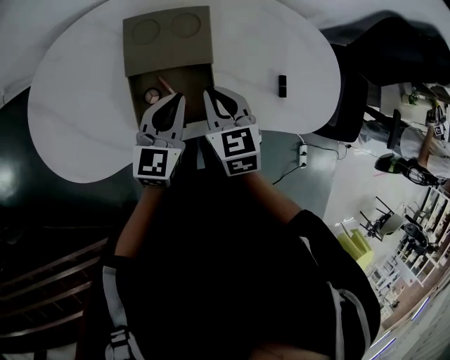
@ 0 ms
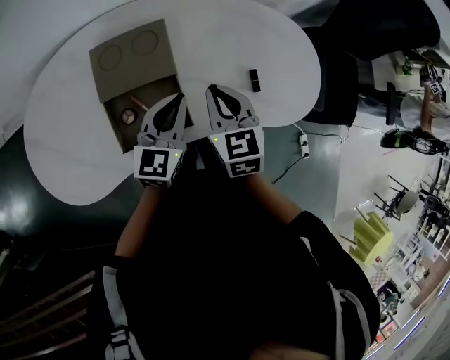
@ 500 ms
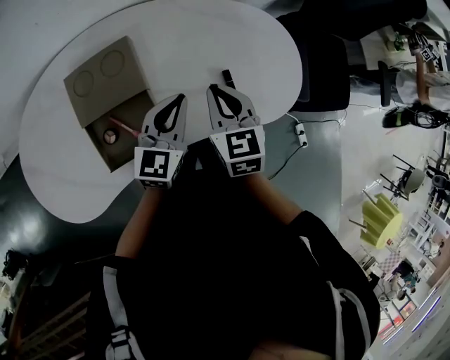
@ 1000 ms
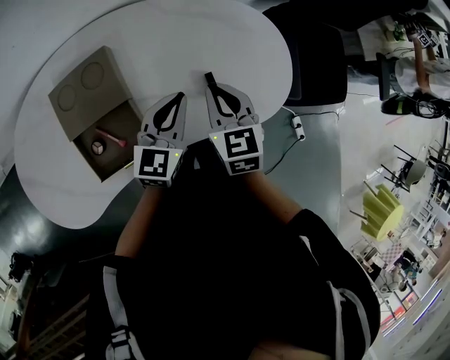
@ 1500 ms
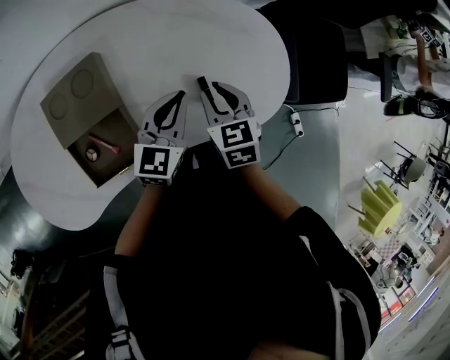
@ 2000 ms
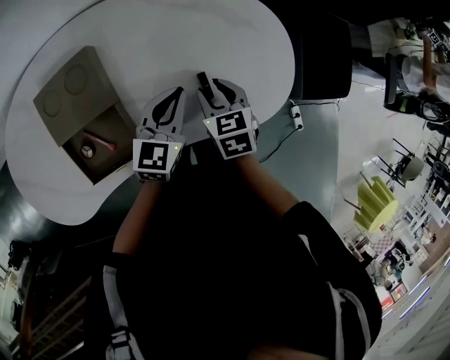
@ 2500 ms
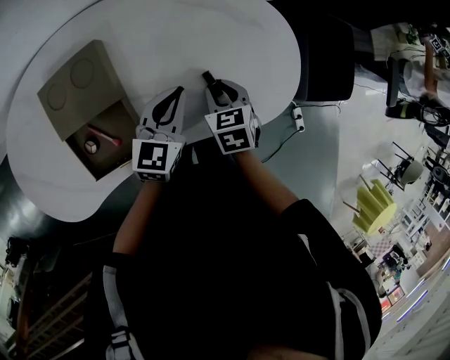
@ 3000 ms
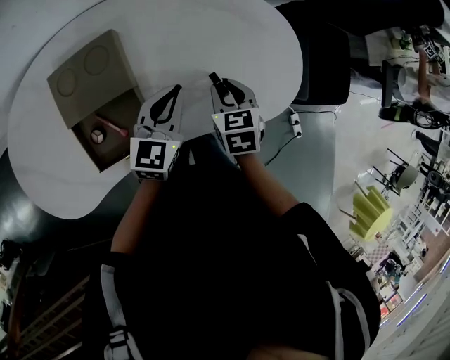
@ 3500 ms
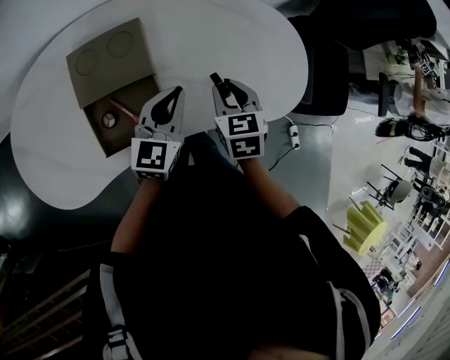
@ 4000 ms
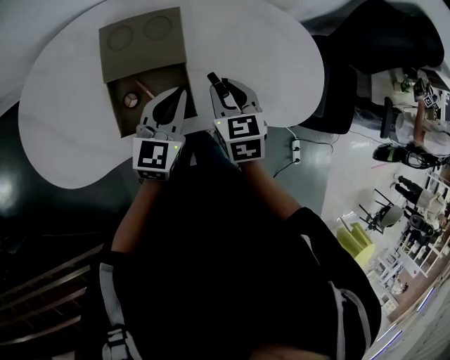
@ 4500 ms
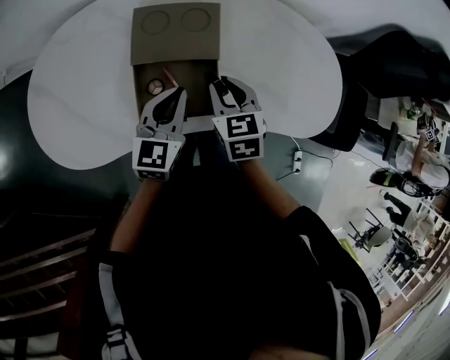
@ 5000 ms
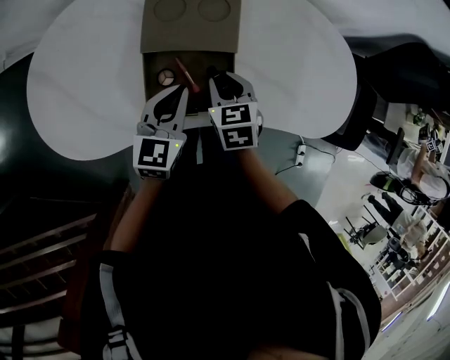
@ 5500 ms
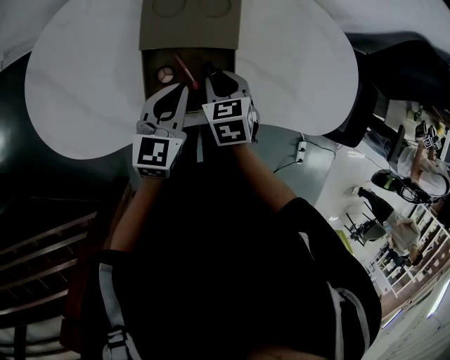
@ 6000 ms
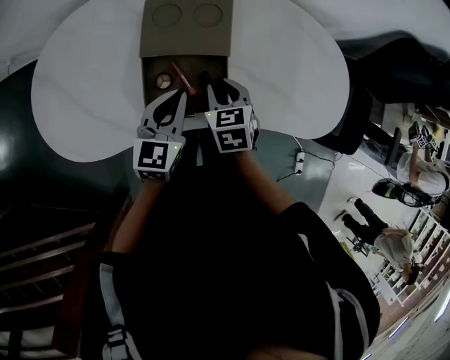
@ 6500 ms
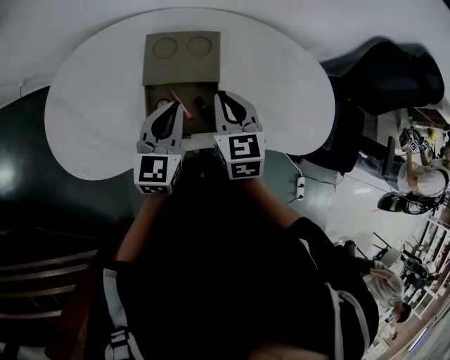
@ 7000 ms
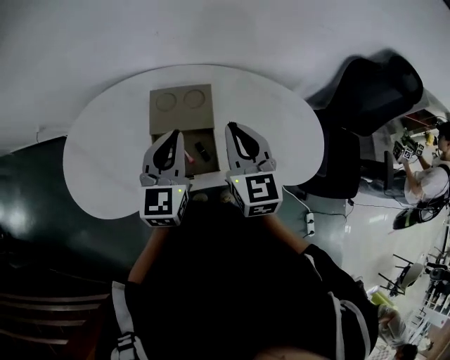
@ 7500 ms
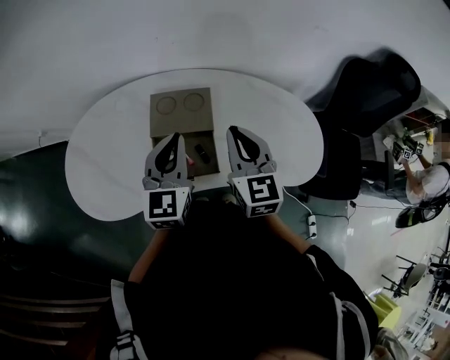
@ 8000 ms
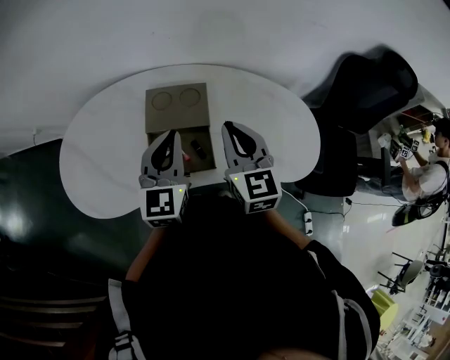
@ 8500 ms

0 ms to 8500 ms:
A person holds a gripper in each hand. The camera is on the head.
0 ms to 2000 ms: The grippers both shift to the right by about 25 cm.
2000 ms to 4000 ms: The right gripper travels to the left by roughly 5 cm. Meanwhile the left gripper is displaced to the left by some 10 cm.
4000 ms to 6500 ms: The grippers both shift to the left by approximately 20 cm.
6500 ms to 8500 ms: Both grippers move upward, approximately 20 cm. The right gripper tips its fingers upward by roughly 40 degrees; the left gripper turns by about 20 degrees.

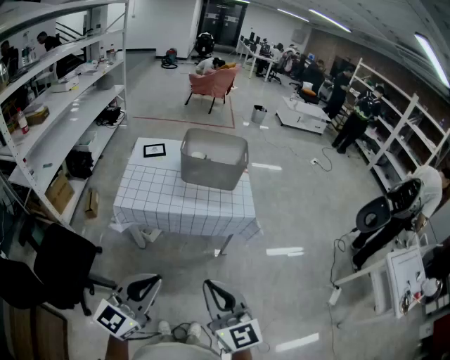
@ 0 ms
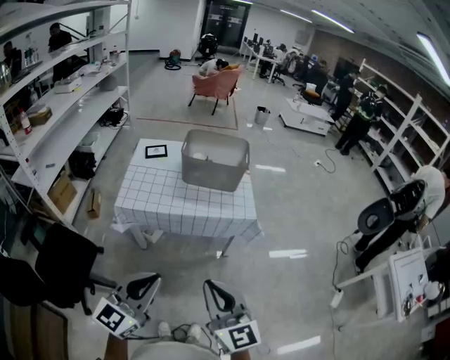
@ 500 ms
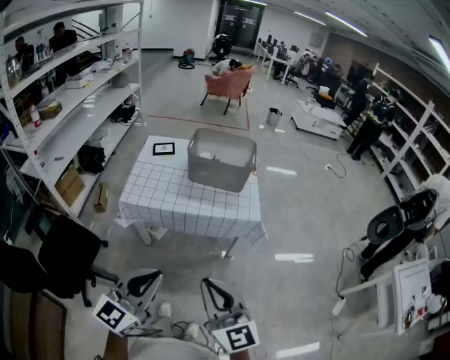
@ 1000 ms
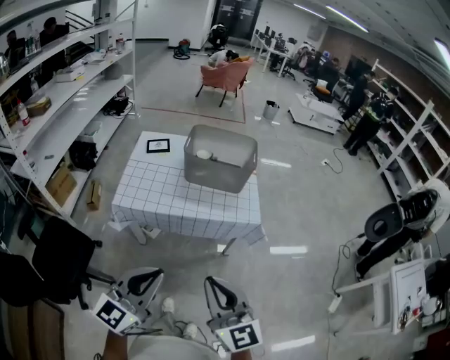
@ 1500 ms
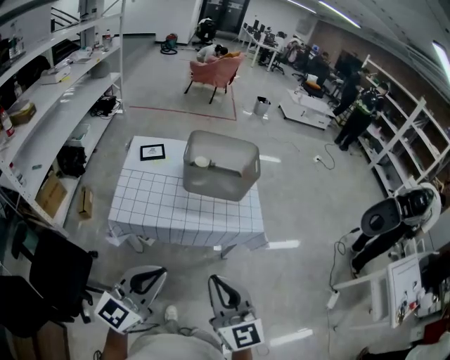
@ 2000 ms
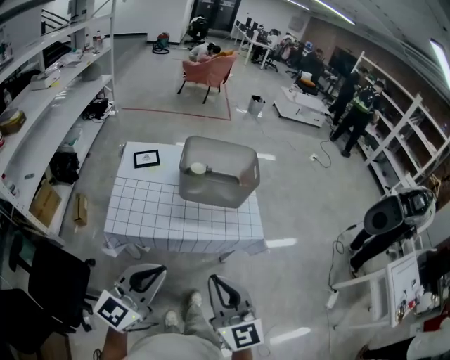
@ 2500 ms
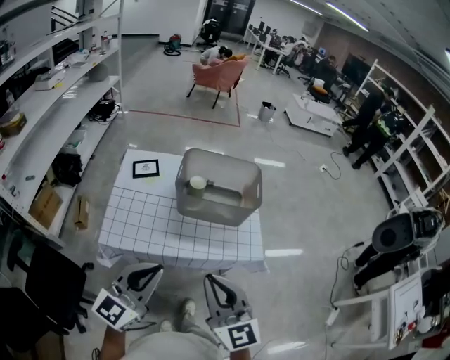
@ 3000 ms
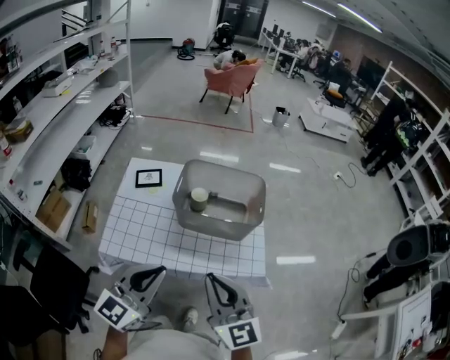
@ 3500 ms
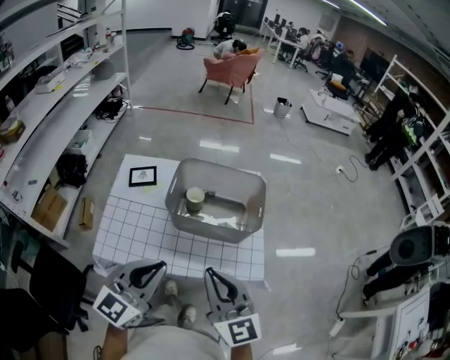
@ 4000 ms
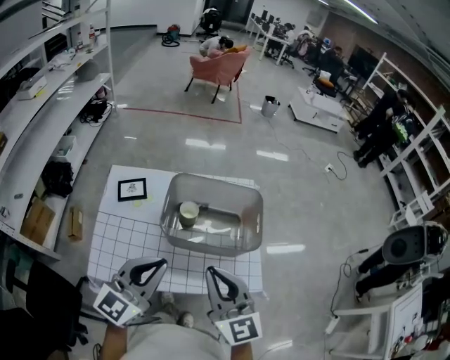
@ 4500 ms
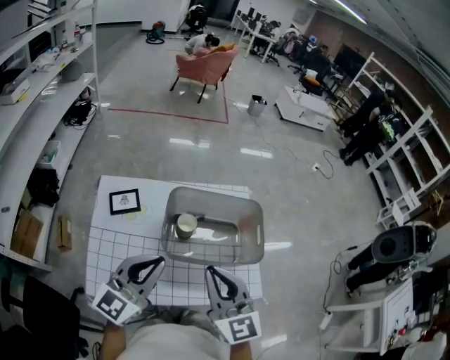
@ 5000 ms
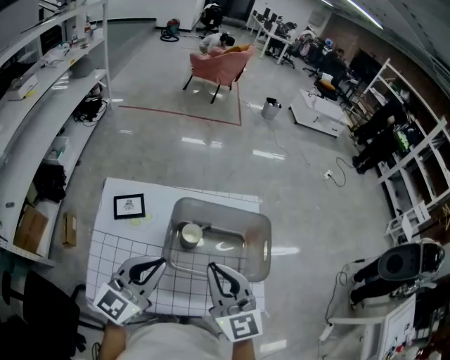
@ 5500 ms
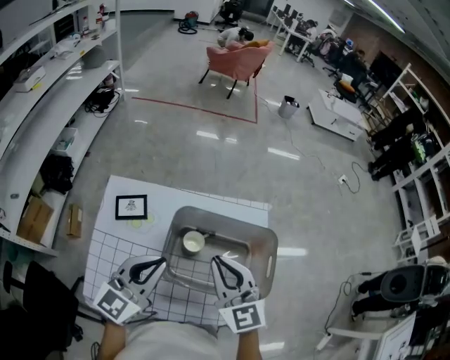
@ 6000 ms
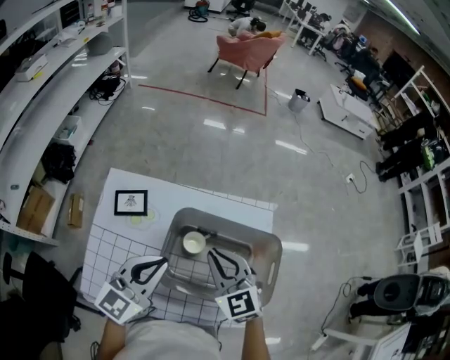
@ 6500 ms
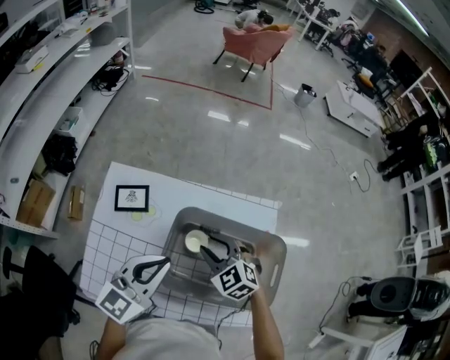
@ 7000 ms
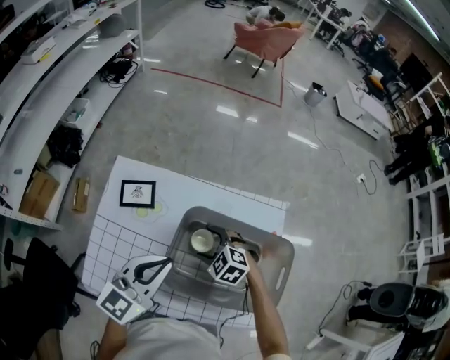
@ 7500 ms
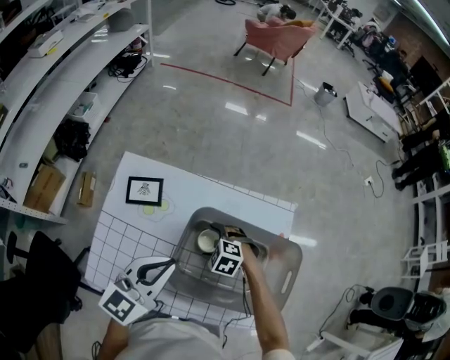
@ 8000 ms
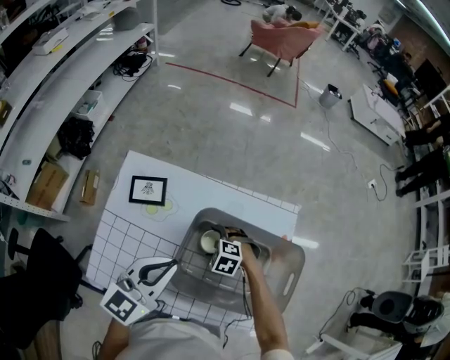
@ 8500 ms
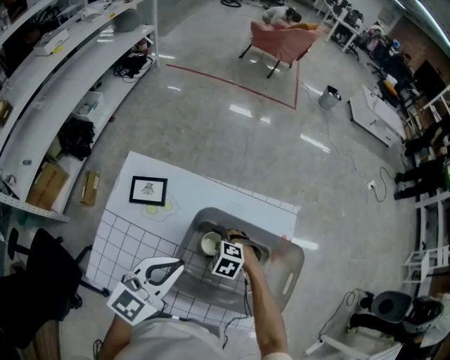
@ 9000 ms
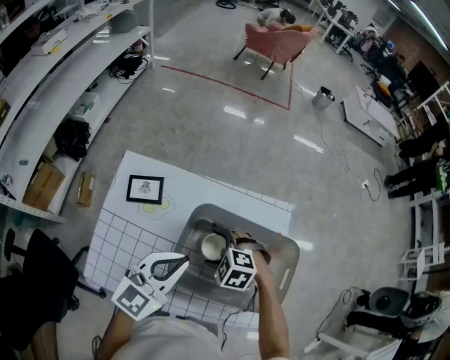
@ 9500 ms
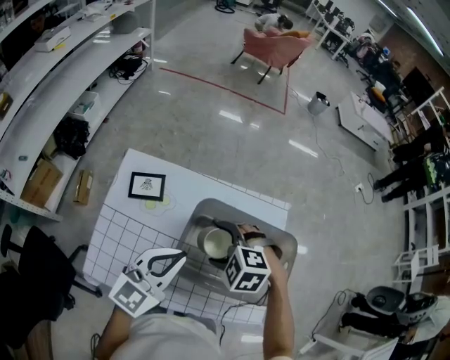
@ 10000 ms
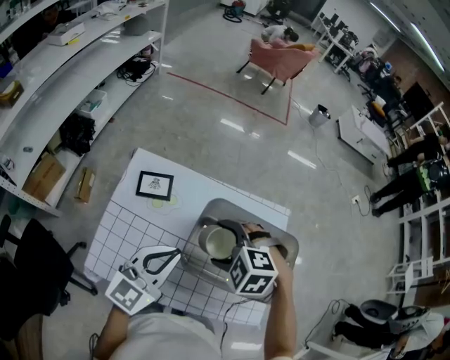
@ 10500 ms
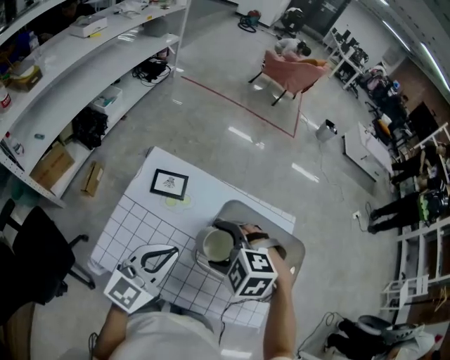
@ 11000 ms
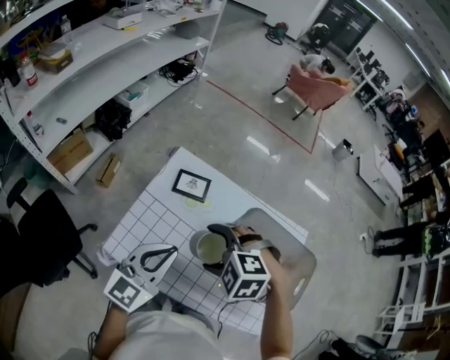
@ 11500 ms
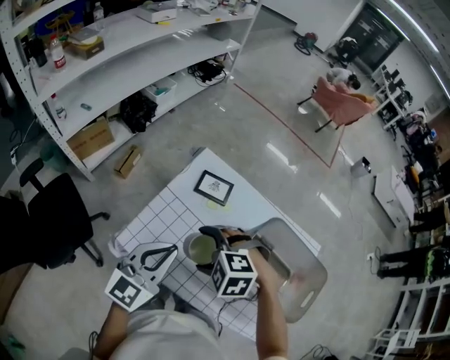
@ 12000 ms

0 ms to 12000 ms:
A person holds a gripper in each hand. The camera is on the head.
0 ms to 2000 ms: The grippers both shift forward by some 15 cm.
2000 ms to 4000 ms: The two grippers go roughly 30 cm forward.
4000 ms to 6000 ms: The two grippers go approximately 25 cm forward.
6000 ms to 8000 ms: The right gripper goes some 30 cm downward, angles its fingers downward, by some 60 degrees, and opens its fingers. The left gripper shifts roughly 5 cm downward.
8000 ms to 10000 ms: The right gripper goes roughly 20 cm upward.
10000 ms to 12000 ms: The left gripper shifts by some 20 cm, and rotates approximately 30 degrees. The right gripper moves about 25 cm, and rotates roughly 30 degrees.

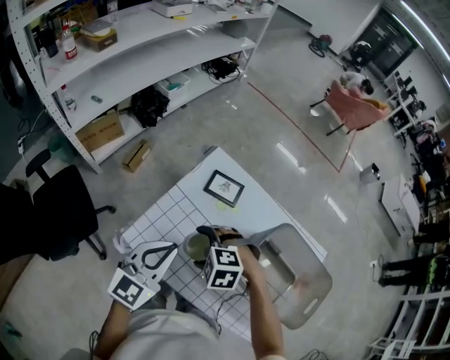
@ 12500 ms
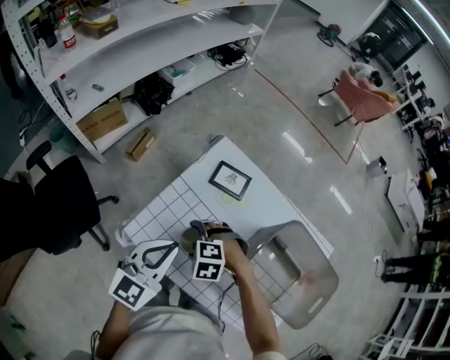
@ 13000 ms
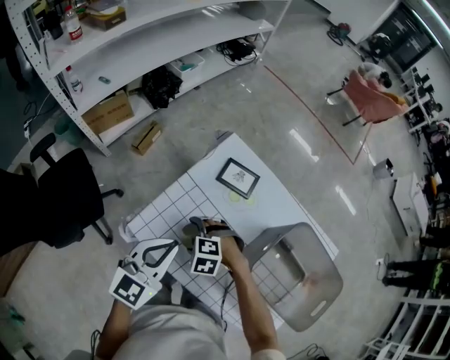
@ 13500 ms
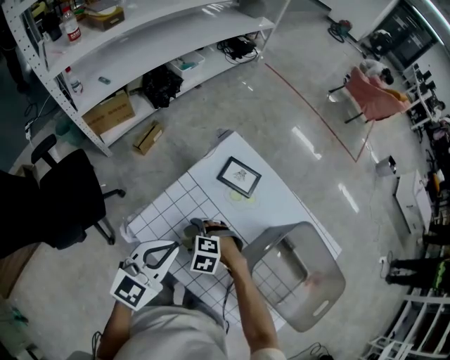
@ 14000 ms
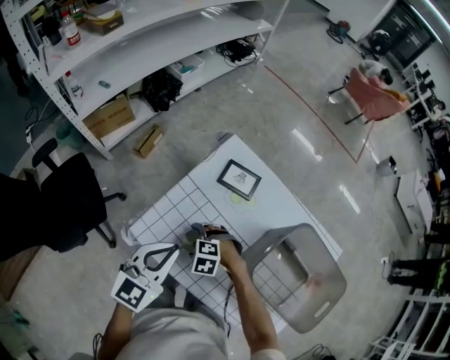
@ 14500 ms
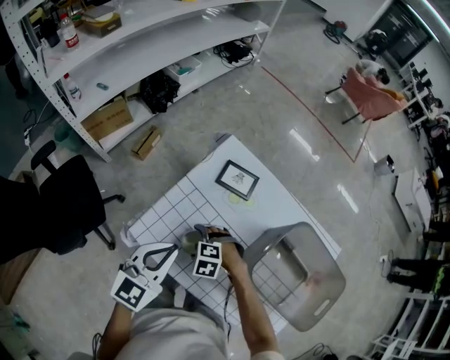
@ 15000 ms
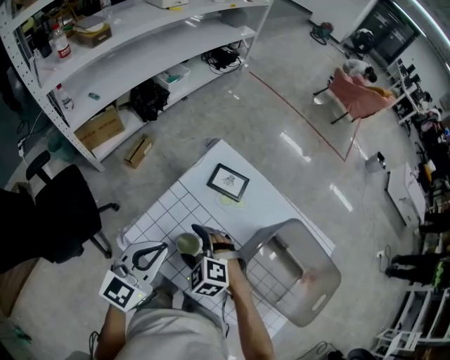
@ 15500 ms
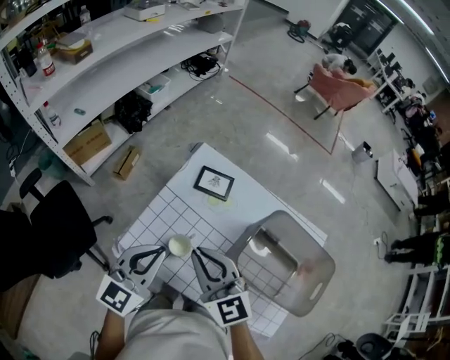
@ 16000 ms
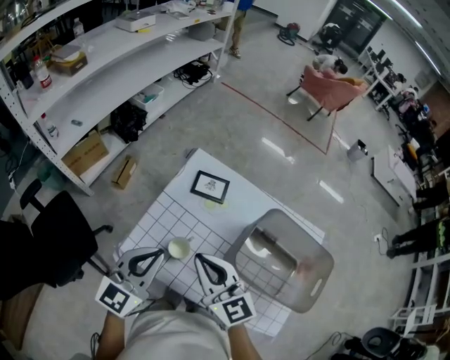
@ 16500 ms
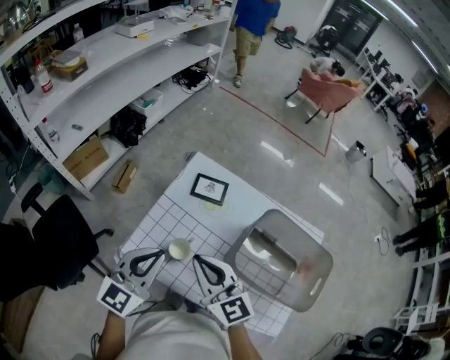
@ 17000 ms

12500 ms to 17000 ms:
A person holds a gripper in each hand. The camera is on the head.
12500 ms to 14500 ms: The right gripper moves downward, about 15 cm. Meanwhile the left gripper changes place by approximately 5 cm.
14500 ms to 17000 ms: The right gripper is displaced upward by about 30 cm, tilts its fingers some 60 degrees upward, and closes its fingers, while the left gripper heads upward, covering about 10 cm.

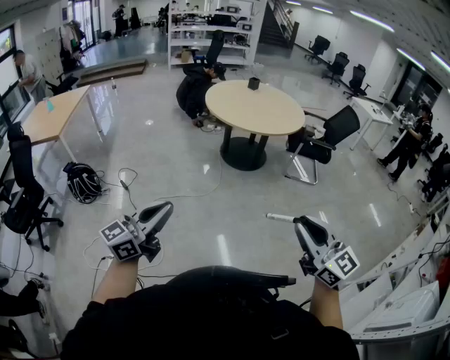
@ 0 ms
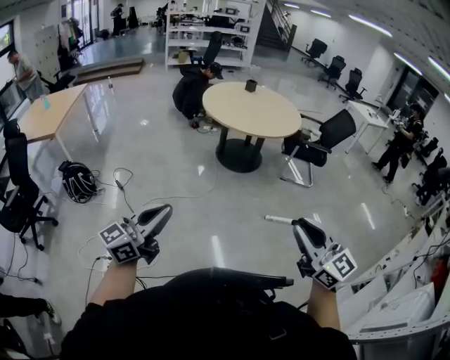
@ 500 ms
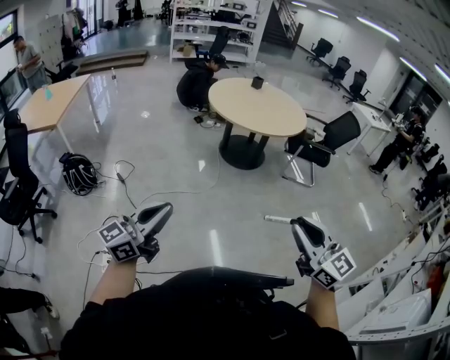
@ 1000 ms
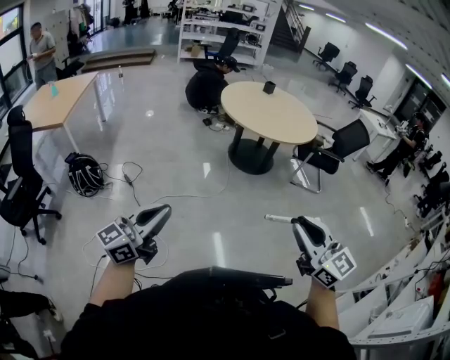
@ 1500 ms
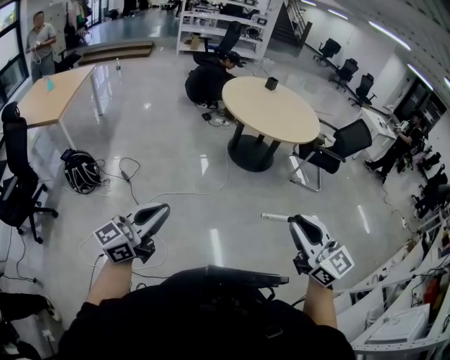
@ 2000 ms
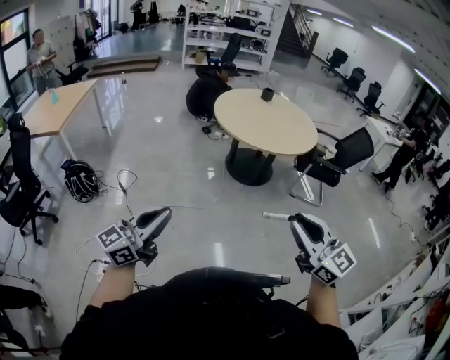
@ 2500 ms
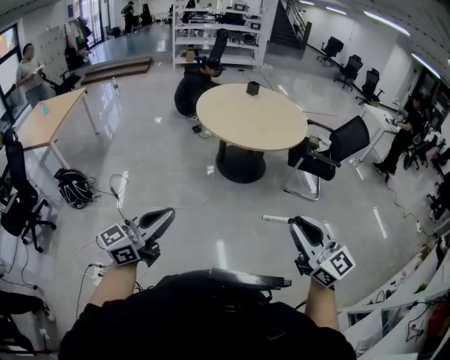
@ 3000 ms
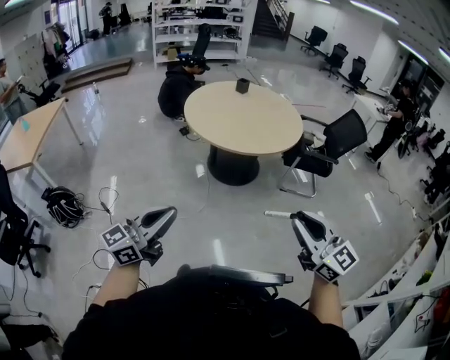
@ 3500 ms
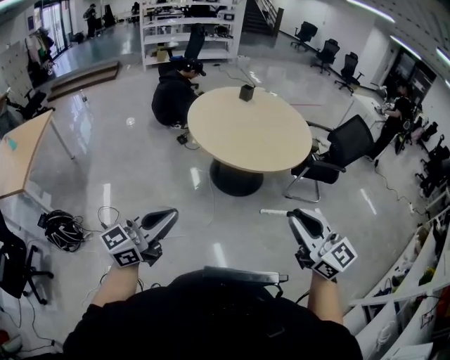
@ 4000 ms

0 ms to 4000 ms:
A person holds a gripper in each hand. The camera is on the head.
0 ms to 2000 ms: The grippers both shift to the left and forward by approximately 20 cm.
2000 ms to 4000 ms: The two grippers go roughly 35 cm forward.
